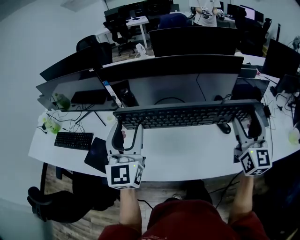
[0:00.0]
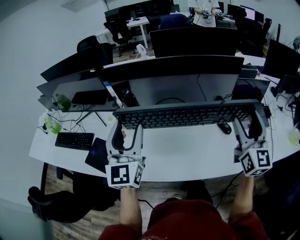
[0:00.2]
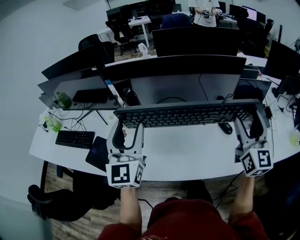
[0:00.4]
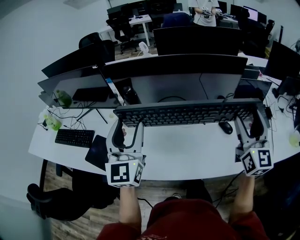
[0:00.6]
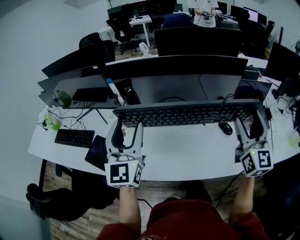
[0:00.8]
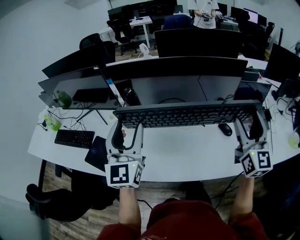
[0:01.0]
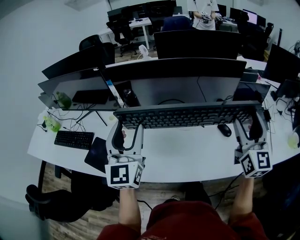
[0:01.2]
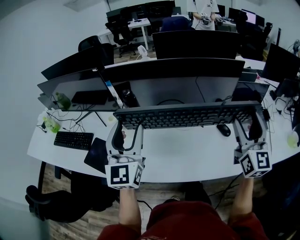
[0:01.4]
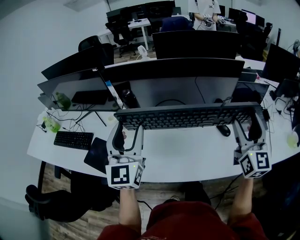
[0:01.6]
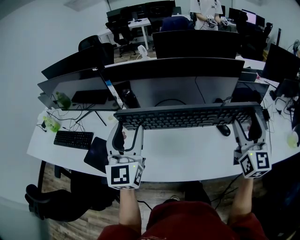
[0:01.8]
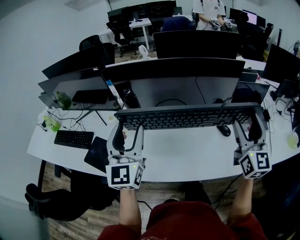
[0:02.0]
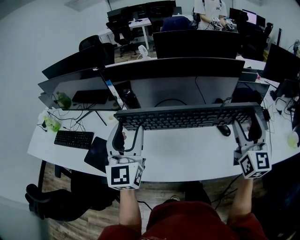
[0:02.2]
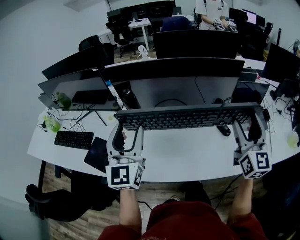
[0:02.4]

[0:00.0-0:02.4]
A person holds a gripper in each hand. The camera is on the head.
0:00.0 to 0:01.2: The grippers make only small movements.
0:01.2 to 0:02.4: Neither gripper changes place.

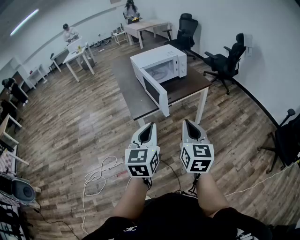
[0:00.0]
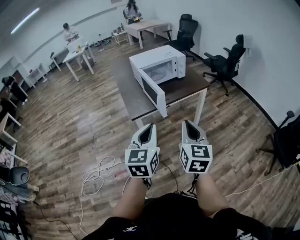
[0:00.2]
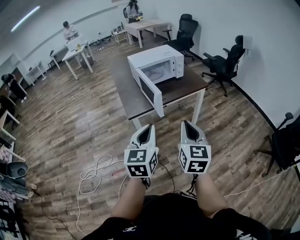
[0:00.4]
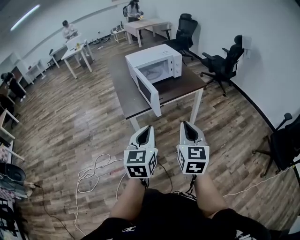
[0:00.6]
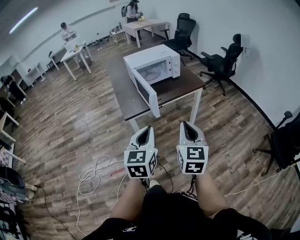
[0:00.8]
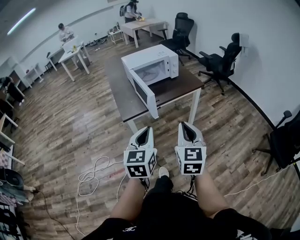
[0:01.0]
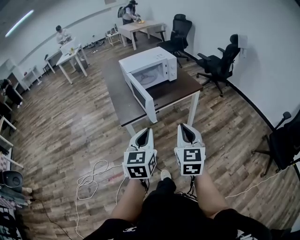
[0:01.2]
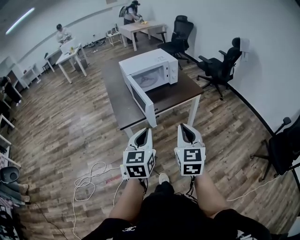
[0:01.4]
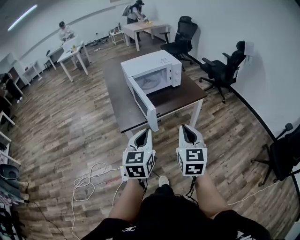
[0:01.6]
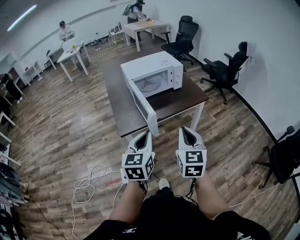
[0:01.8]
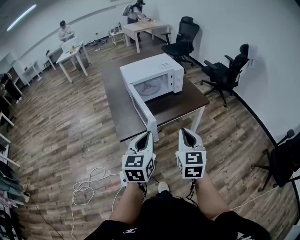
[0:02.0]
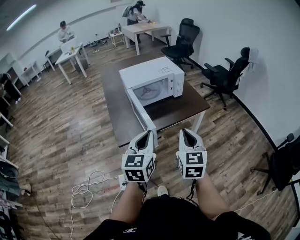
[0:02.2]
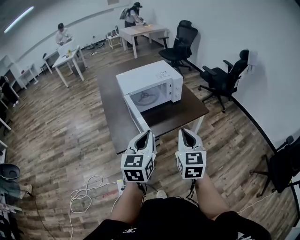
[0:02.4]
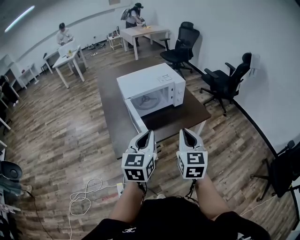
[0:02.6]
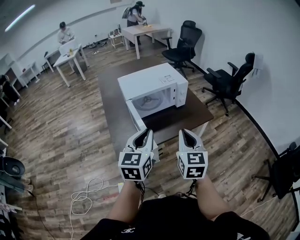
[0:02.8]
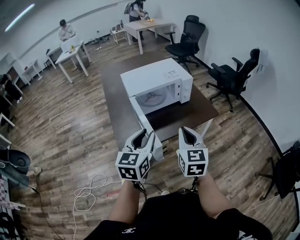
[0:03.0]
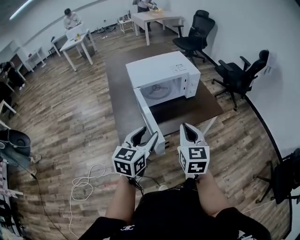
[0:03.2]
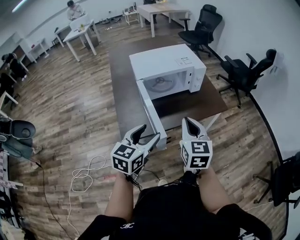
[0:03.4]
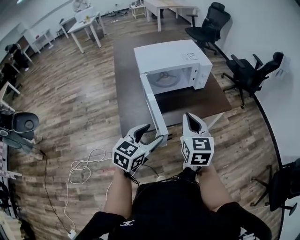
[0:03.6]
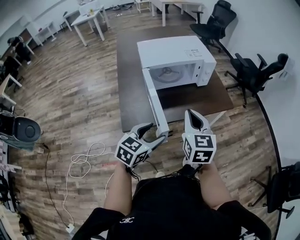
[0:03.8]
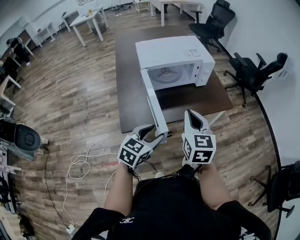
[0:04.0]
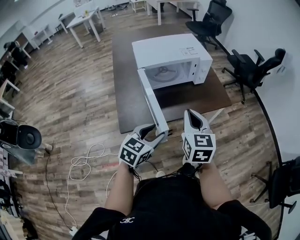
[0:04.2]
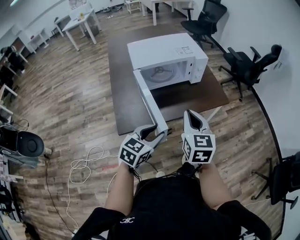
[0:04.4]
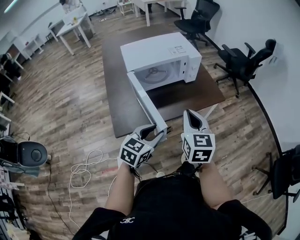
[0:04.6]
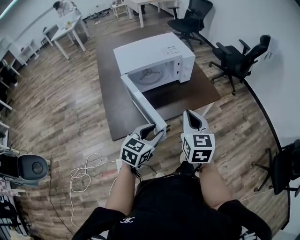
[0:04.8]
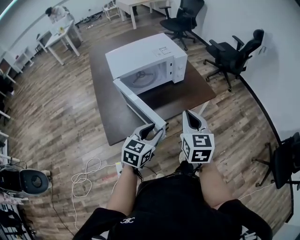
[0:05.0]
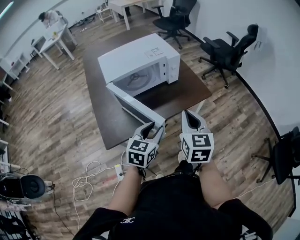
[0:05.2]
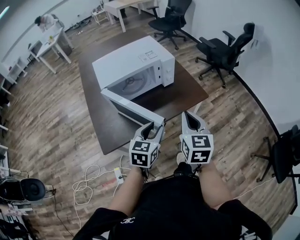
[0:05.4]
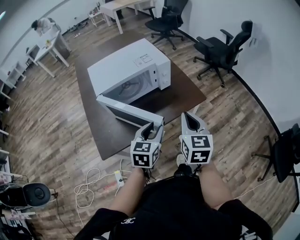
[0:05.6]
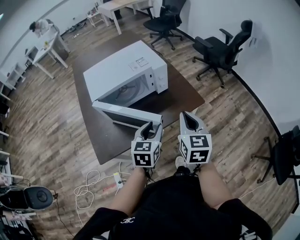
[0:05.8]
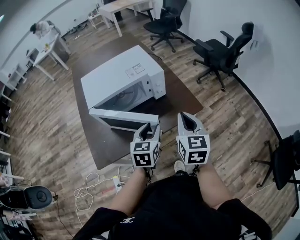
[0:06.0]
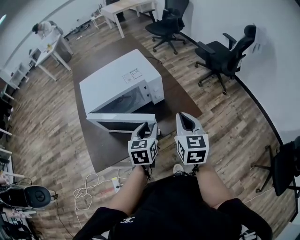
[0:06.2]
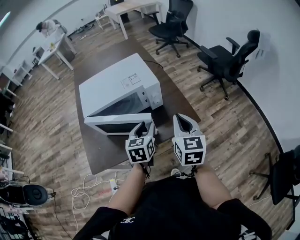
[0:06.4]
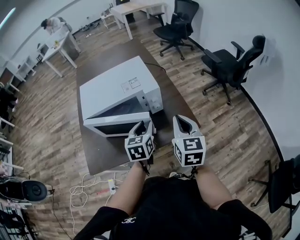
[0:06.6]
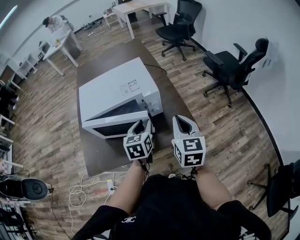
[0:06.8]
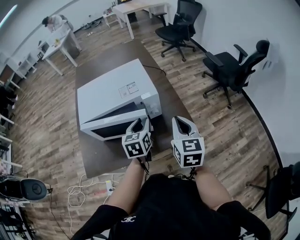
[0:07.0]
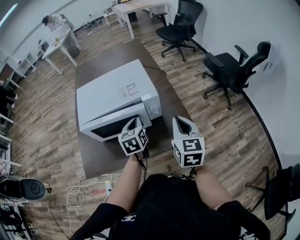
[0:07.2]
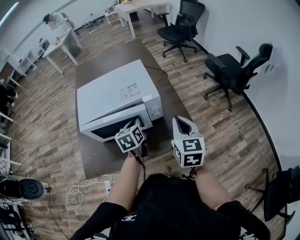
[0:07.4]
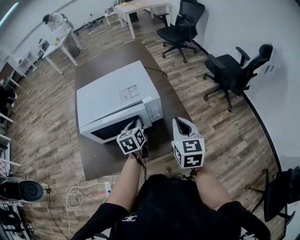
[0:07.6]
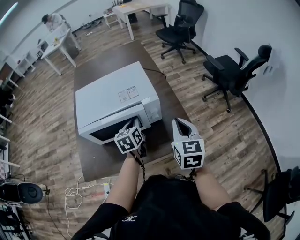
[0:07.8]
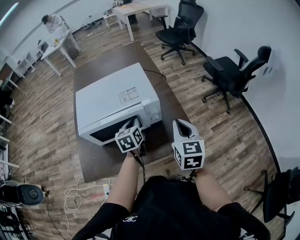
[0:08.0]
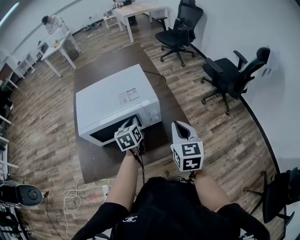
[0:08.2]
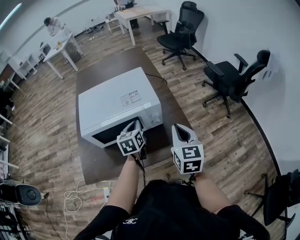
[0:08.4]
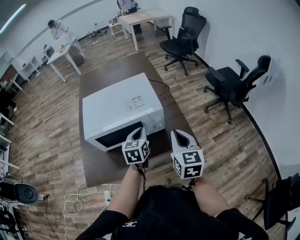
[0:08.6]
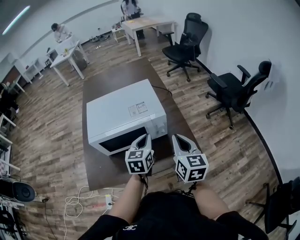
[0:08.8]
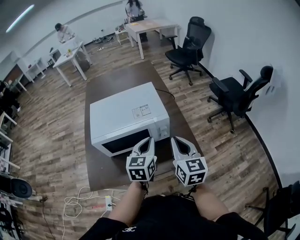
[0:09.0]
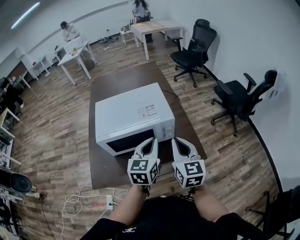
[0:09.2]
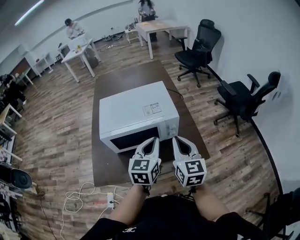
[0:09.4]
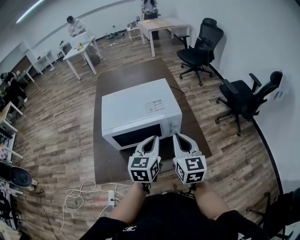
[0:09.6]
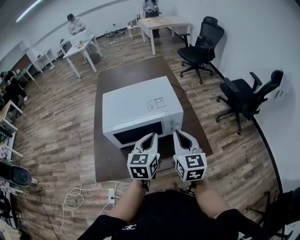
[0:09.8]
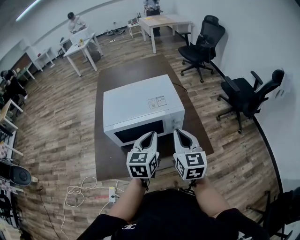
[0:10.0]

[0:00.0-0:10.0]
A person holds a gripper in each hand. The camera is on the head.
0:00.0 to 0:01.4: The right gripper heads forward and to the right, covering approximately 10 cm, while the left gripper moves forward, approximately 10 cm.
0:01.4 to 0:02.8: The two grippers go about 25 cm forward.
0:02.8 to 0:04.2: The left gripper moves downward, roughly 15 cm, turns by about 30 degrees, and opens its fingers, while the right gripper moves downward and forward, about 10 cm.
0:04.2 to 0:05.8: The left gripper goes approximately 20 cm forward and to the right, while the right gripper is displaced to the right and forward by some 20 cm.
0:05.8 to 0:07.2: The left gripper goes approximately 20 cm forward, turns by about 30 degrees, and closes up, while the right gripper moves forward and to the right, some 20 cm.
0:07.2 to 0:08.6: The grippers stay close to where they were, moving slightly.
0:08.6 to 0:10.0: The right gripper heads to the left, covering roughly 10 cm; the left gripper moves upward and backward, some 10 cm.

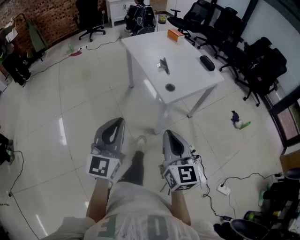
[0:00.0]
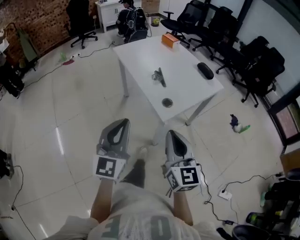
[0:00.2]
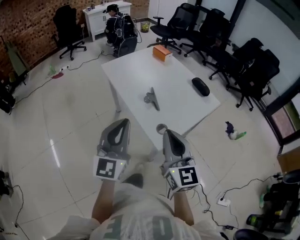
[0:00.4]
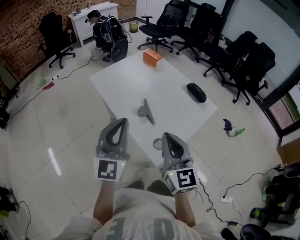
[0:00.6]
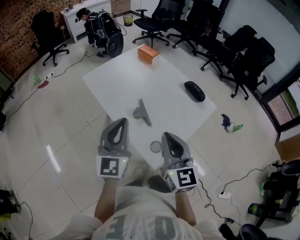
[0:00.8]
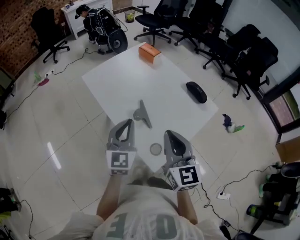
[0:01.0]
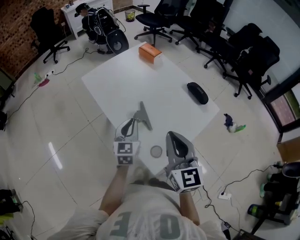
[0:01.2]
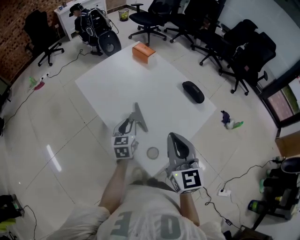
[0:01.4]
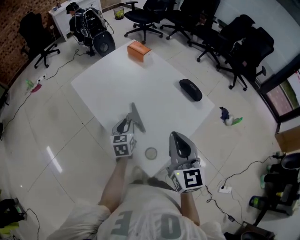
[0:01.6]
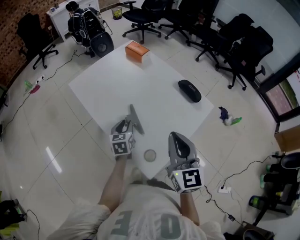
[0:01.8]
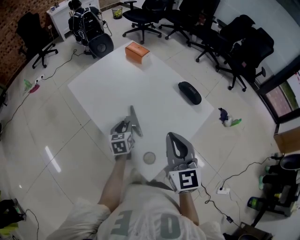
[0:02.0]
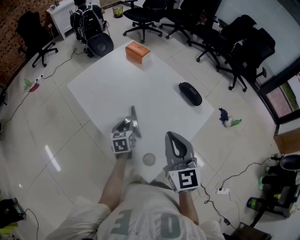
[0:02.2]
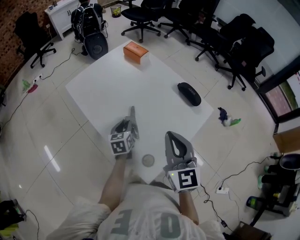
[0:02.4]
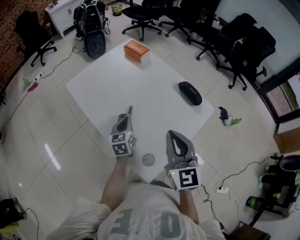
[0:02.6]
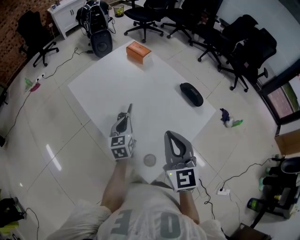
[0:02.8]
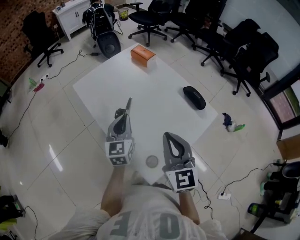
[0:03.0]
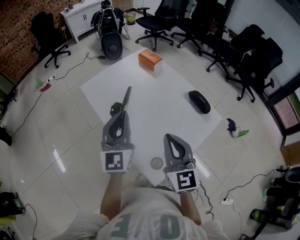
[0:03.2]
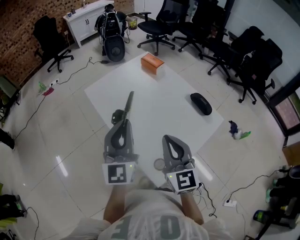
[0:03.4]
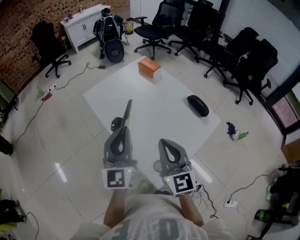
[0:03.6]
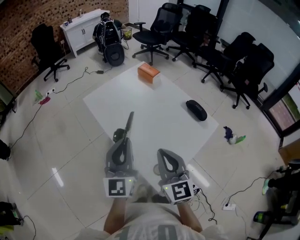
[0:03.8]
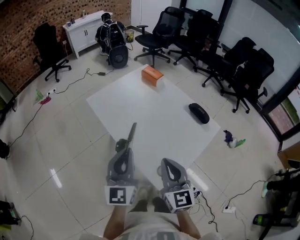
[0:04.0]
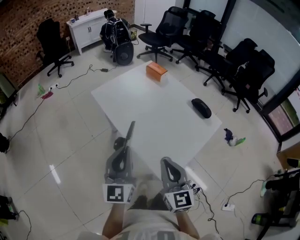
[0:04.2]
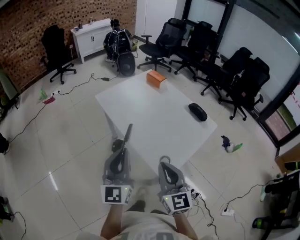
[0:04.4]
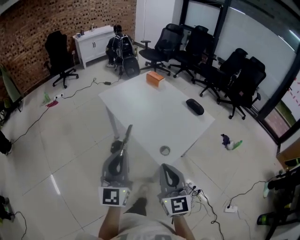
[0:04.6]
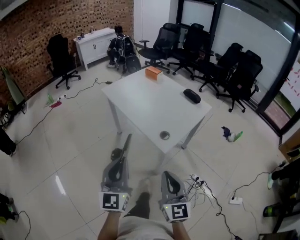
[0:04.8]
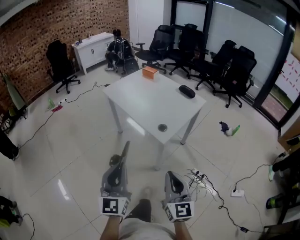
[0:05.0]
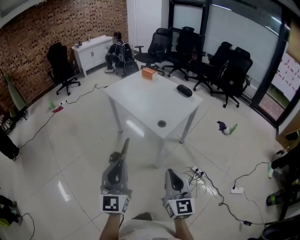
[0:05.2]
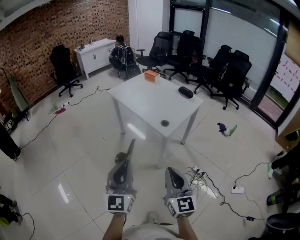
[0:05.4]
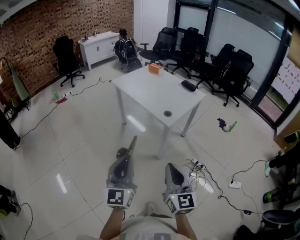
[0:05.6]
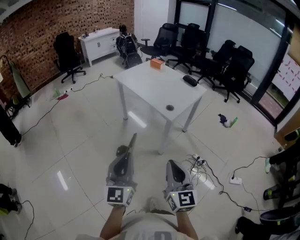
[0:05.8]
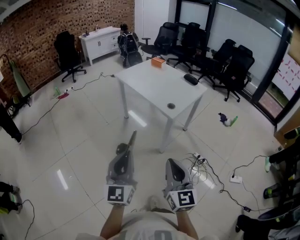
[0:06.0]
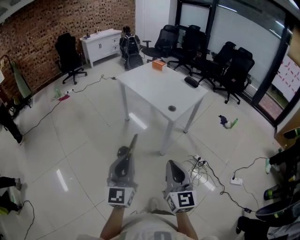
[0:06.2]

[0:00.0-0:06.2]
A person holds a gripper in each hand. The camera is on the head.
0:00.0 to 0:01.6: The pair of grippers is taken forward, some 50 cm. The left gripper heads downward, covering about 25 cm, angles its fingers downward, by roughly 40 degrees, and opens its fingers.
0:01.6 to 0:03.2: The left gripper heads upward, covering some 25 cm, and points its fingers about 30 degrees further upward; the right gripper shifts by some 5 cm.
0:03.2 to 0:04.6: The grippers both shift backward and to the left by roughly 30 cm.
0:04.6 to 0:06.2: Both grippers move backward, approximately 35 cm.

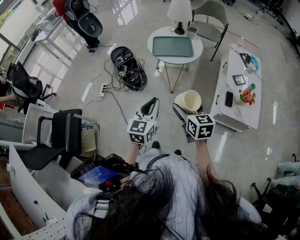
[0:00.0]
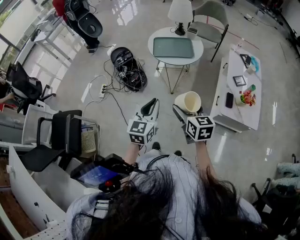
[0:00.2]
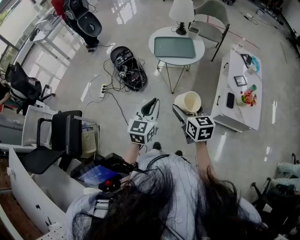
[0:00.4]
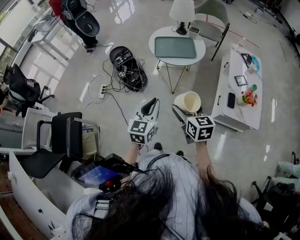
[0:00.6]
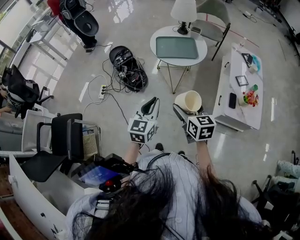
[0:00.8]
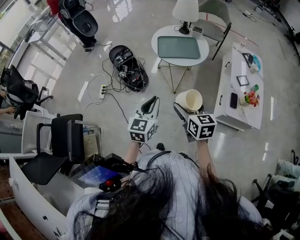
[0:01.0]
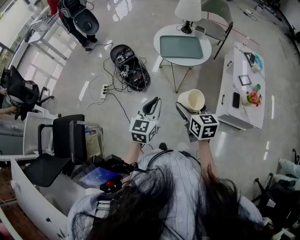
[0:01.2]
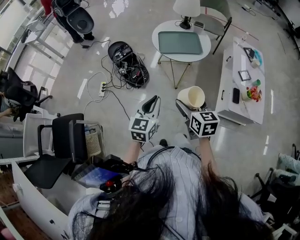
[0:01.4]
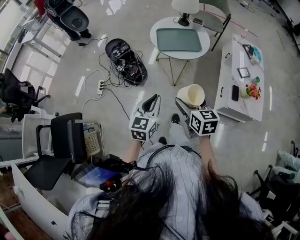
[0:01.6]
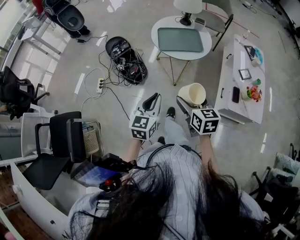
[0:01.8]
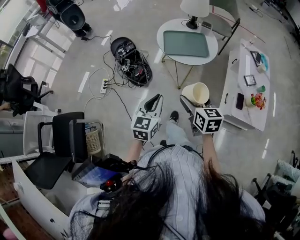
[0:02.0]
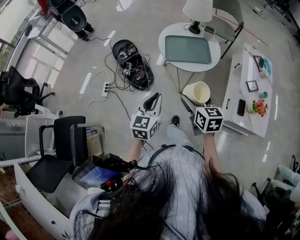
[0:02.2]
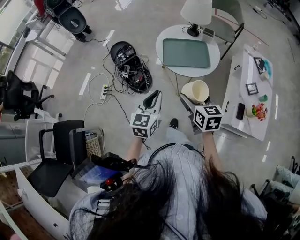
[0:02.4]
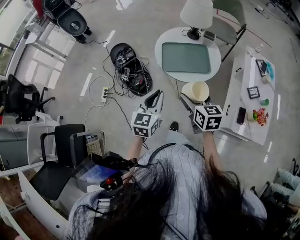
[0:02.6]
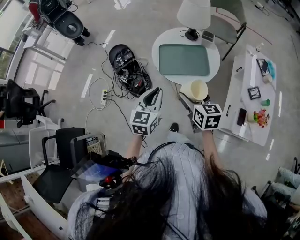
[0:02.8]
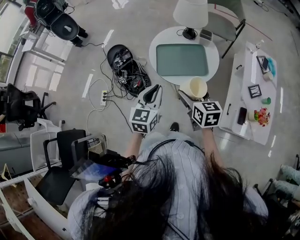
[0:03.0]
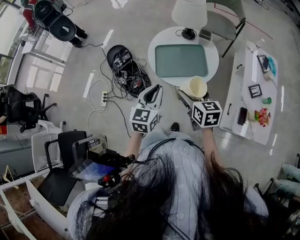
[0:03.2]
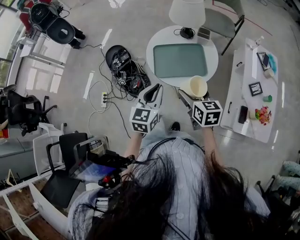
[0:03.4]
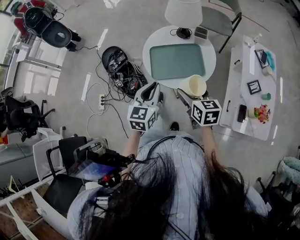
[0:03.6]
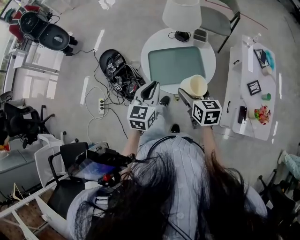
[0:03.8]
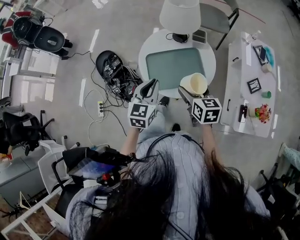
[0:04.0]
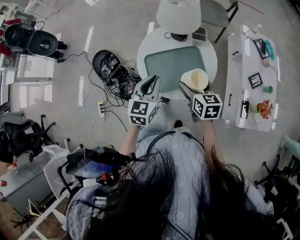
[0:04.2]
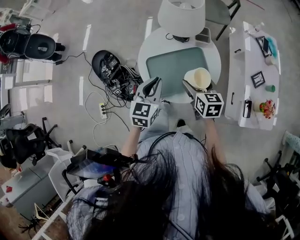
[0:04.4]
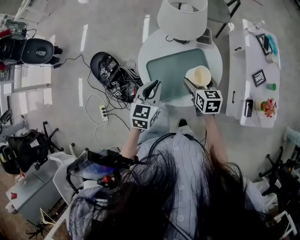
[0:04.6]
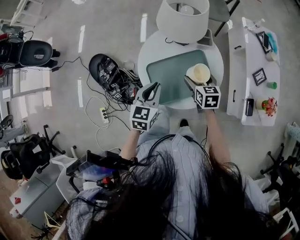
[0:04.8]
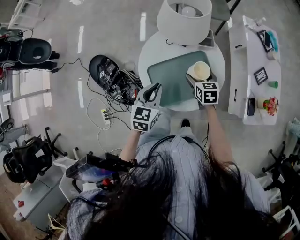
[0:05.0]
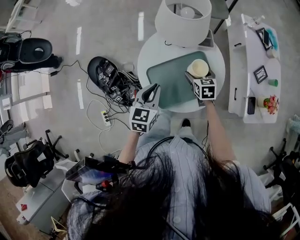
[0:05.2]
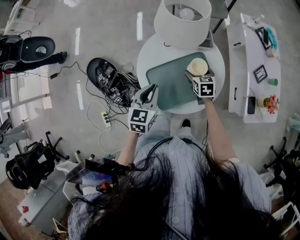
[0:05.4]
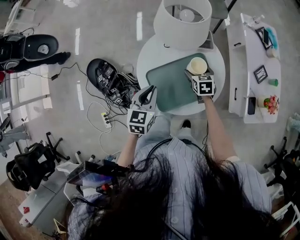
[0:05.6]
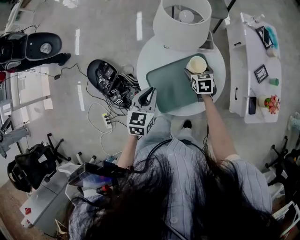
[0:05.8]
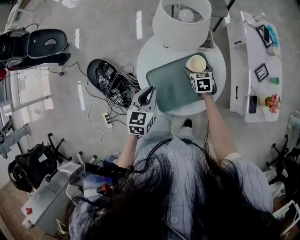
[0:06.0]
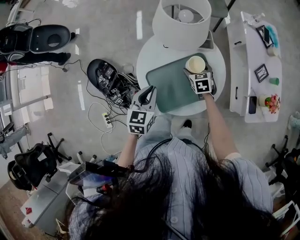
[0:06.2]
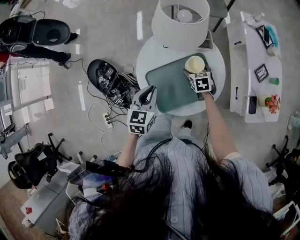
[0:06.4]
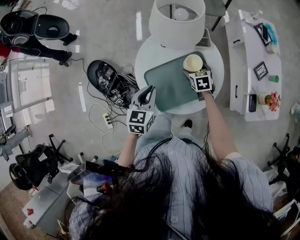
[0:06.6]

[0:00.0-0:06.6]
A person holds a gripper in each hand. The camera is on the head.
0:00.0 to 0:01.6: The grippers both shift to the left and forward by some 10 cm.
0:01.6 to 0:03.2: Both grippers move forward, approximately 30 cm.
0:03.2 to 0:05.0: Both grippers travel together forward and downward, approximately 30 cm. The left gripper rotates some 20 degrees. The right gripper rotates some 20 degrees.
0:05.0 to 0:06.6: The right gripper travels downward by about 5 cm.
